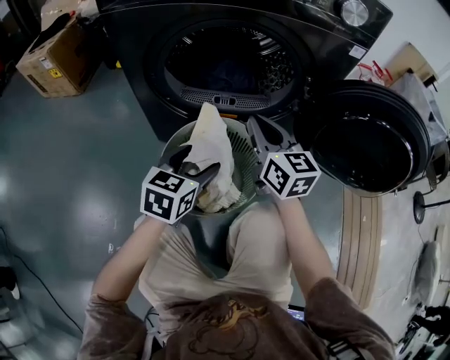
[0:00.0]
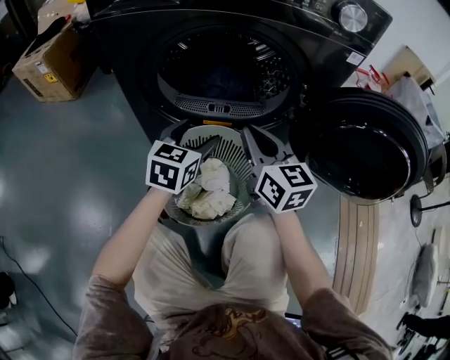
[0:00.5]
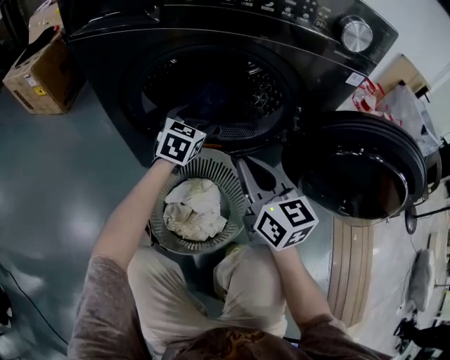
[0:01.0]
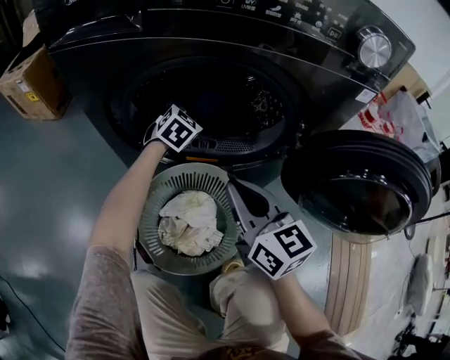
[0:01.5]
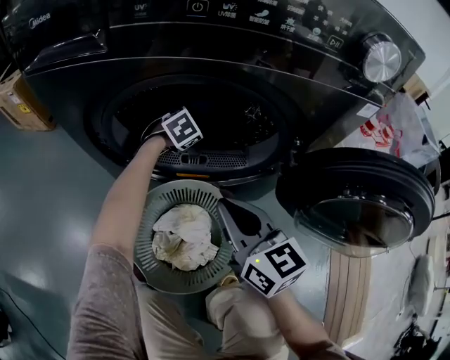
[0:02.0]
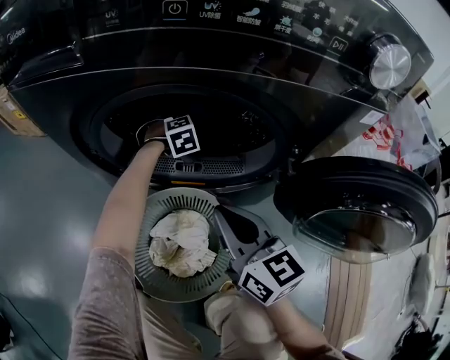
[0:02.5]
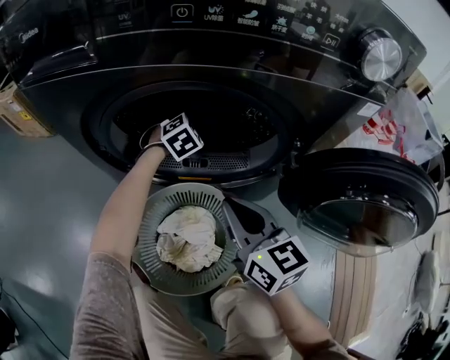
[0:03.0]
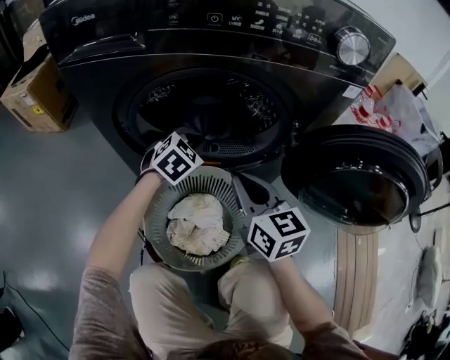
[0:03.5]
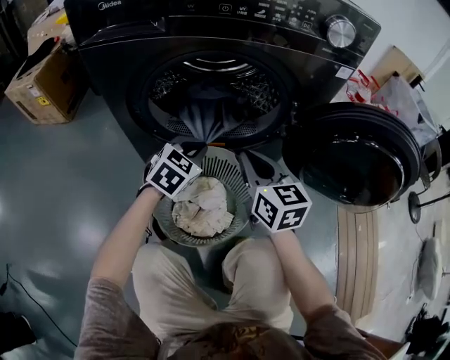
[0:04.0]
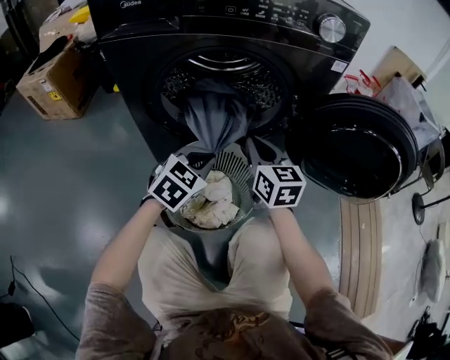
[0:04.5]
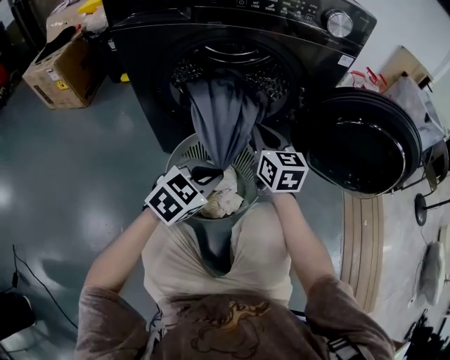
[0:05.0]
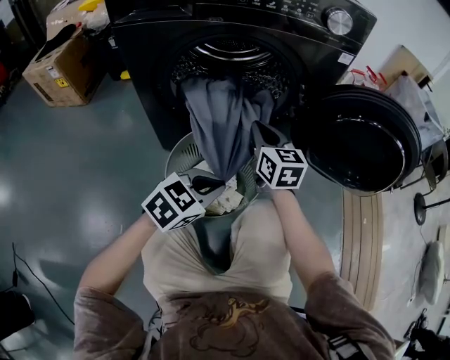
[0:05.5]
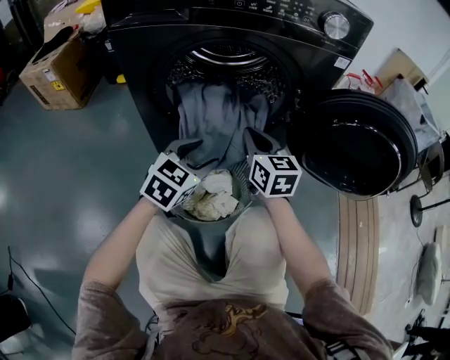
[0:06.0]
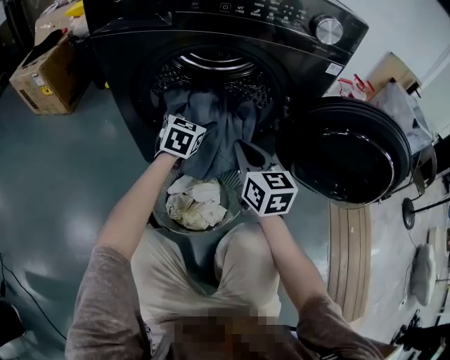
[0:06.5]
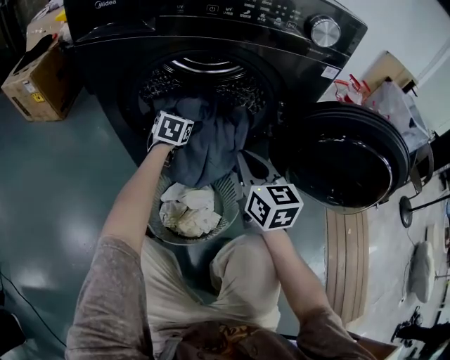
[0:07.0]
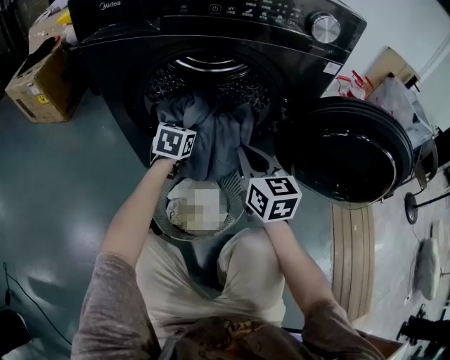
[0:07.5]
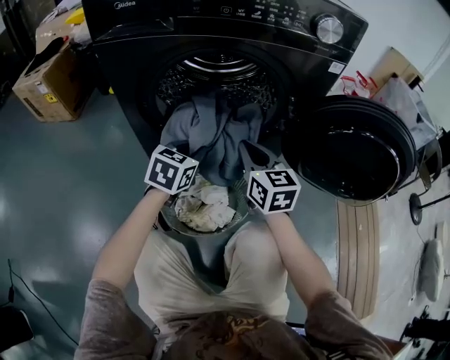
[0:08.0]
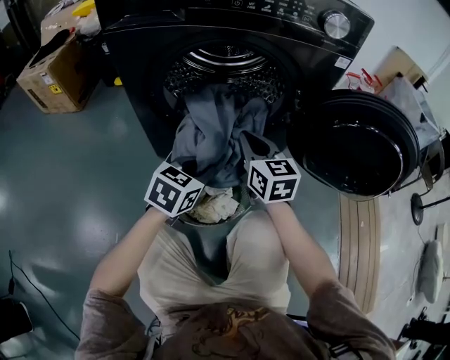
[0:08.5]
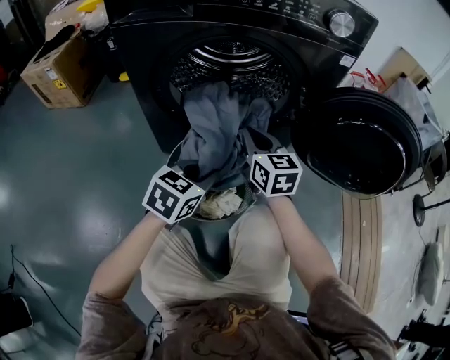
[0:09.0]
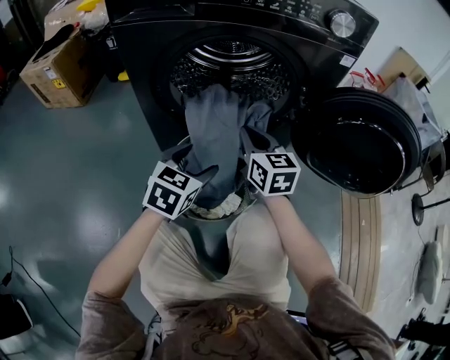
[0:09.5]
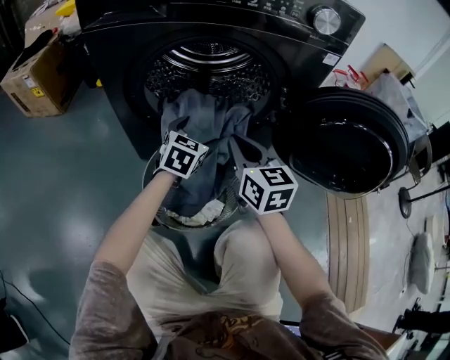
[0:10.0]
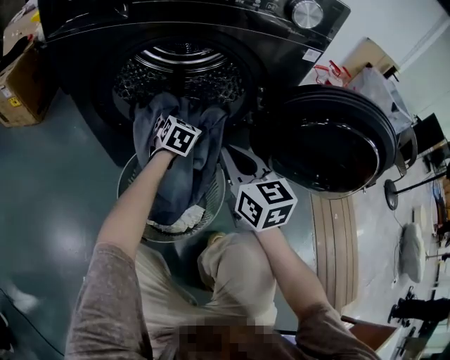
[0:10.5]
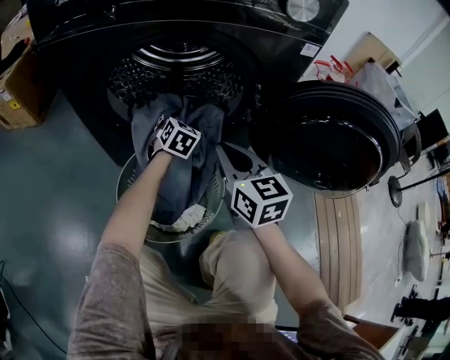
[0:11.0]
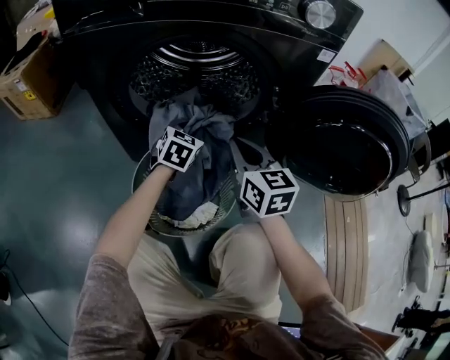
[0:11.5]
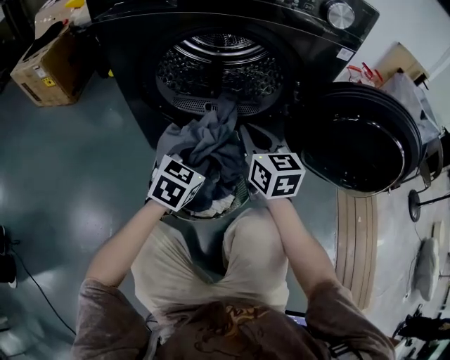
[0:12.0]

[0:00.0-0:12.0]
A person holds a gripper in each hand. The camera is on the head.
0:00.0 to 0:02.0: The left gripper is displaced forward by some 35 cm, and swivels some 40 degrees.
0:02.0 to 0:04.0: The left gripper goes approximately 25 cm backward and upward, swivels about 20 degrees, and closes.
0:04.0 to 0:06.0: The left gripper shifts about 10 cm backward, and opens its fingers.
0:06.0 to 0:08.0: The left gripper moves some 25 cm forward and comes back, and closes its fingers.
0:08.0 to 0:10.0: The left gripper travels backward and back again, some 10 cm each way, and opens its fingers.
0:10.0 to 0:12.0: The left gripper moves backward, some 10 cm, and closes up.

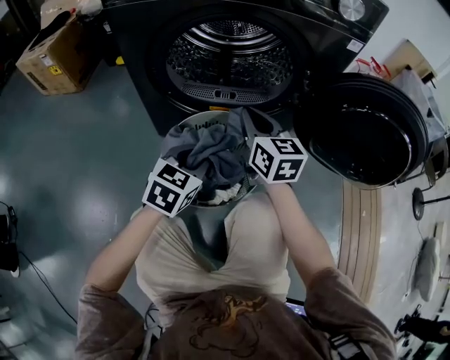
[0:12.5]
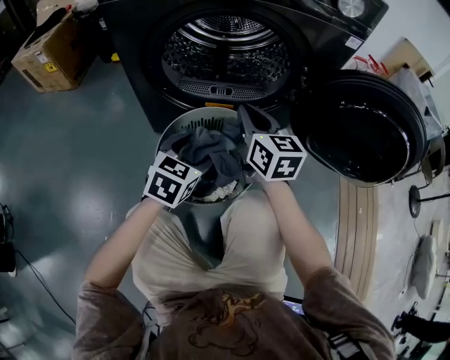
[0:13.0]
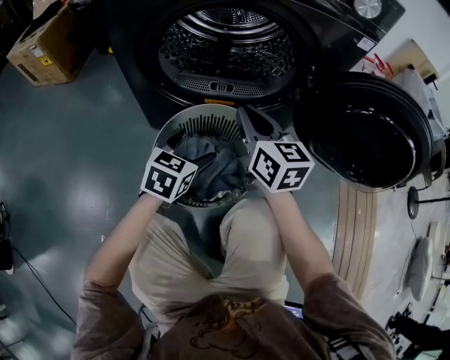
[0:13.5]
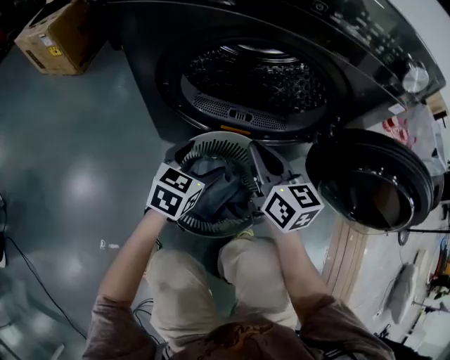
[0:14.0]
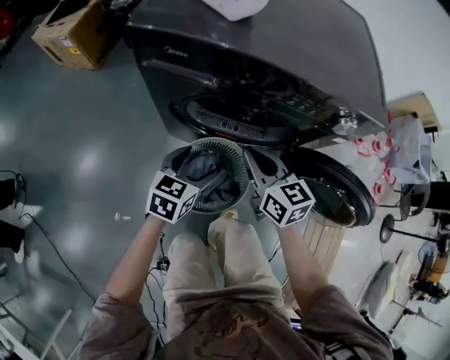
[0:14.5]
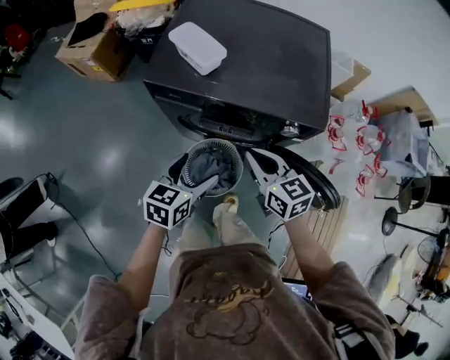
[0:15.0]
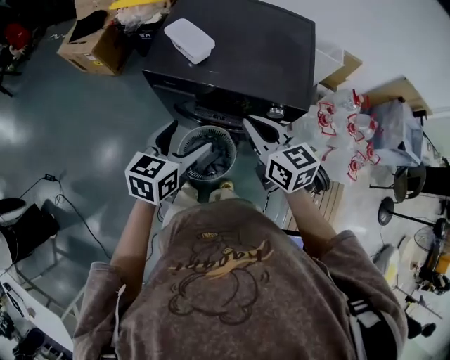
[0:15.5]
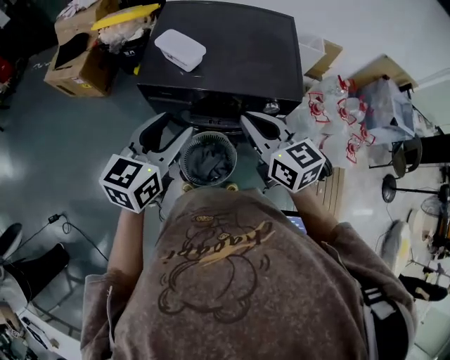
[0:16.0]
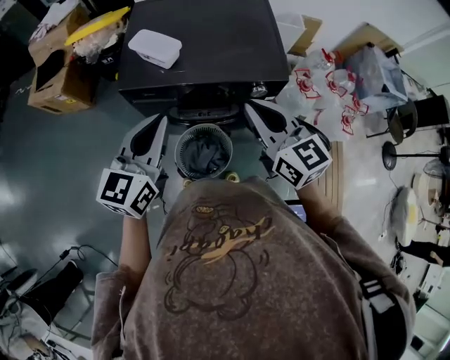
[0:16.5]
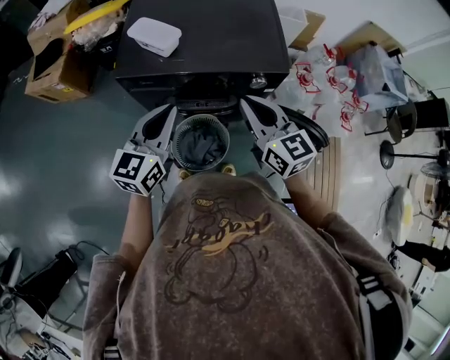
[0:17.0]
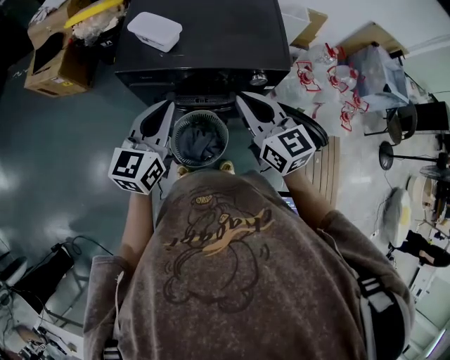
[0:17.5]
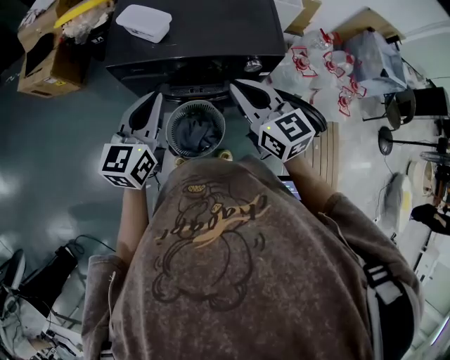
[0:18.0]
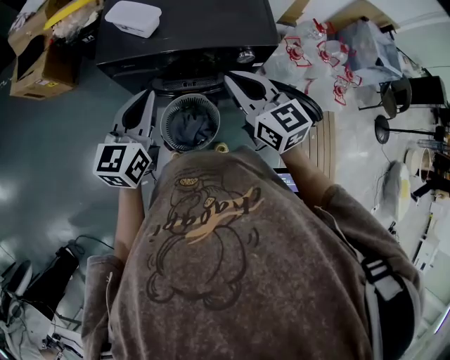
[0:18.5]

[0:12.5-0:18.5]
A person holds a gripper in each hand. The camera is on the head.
0:12.5 to 0:14.5: Both grippers travel together upward, some 20 cm. The left gripper rotates approximately 20 degrees, and opens its fingers; the right gripper rotates some 20 degrees.
0:14.5 to 0:16.5: The grippers both shift upward by about 40 cm. The left gripper swivels approximately 30 degrees, and closes its fingers.
0:16.5 to 0:18.5: Both grippers travel together downward, roughly 5 cm.

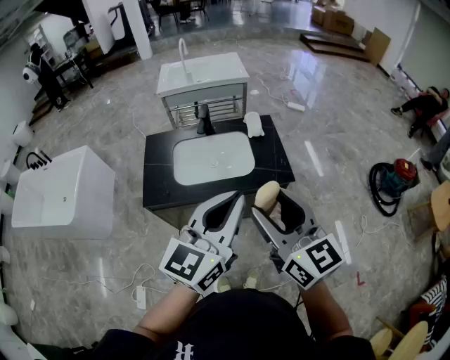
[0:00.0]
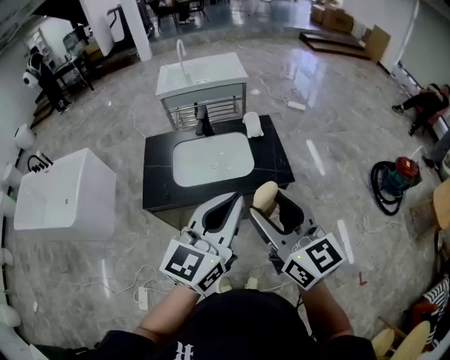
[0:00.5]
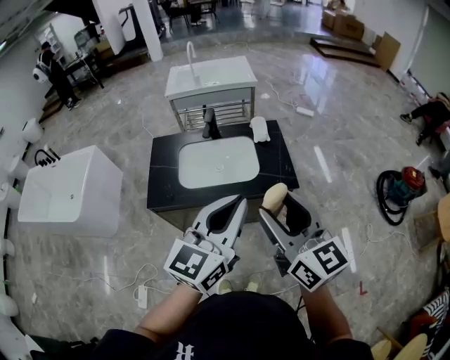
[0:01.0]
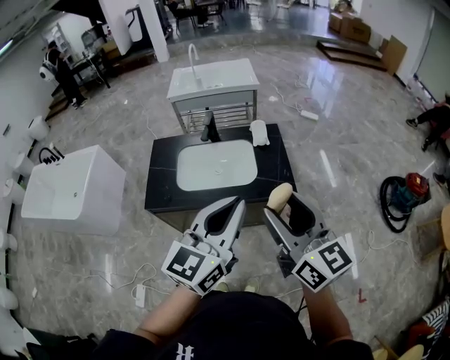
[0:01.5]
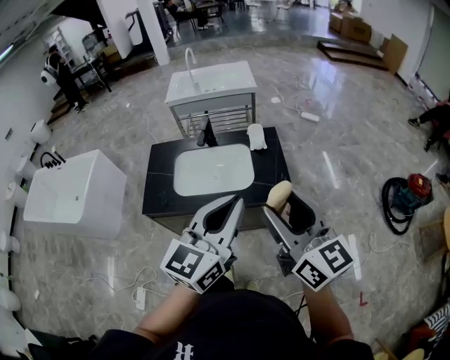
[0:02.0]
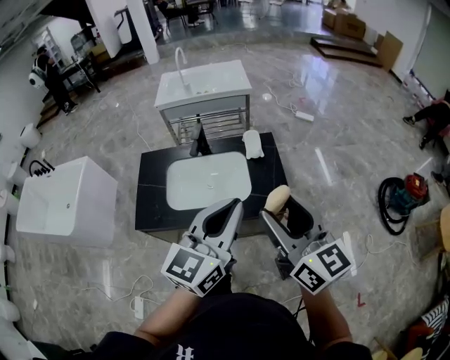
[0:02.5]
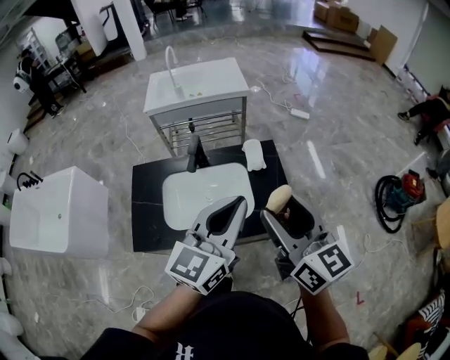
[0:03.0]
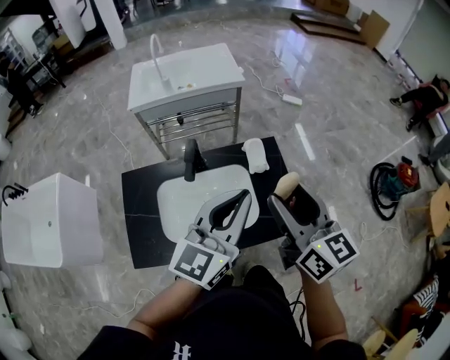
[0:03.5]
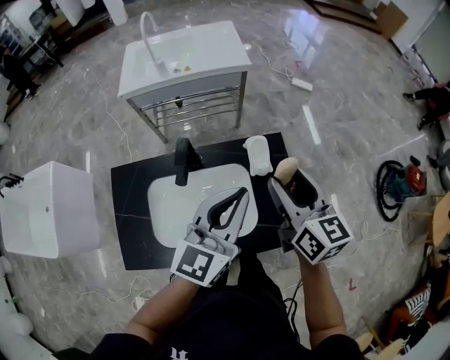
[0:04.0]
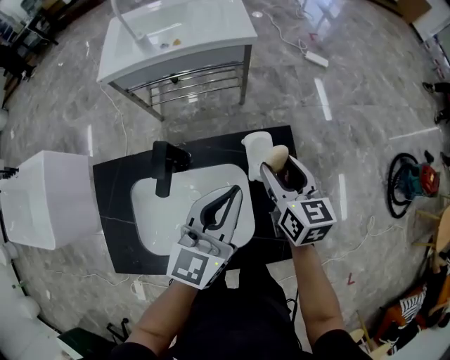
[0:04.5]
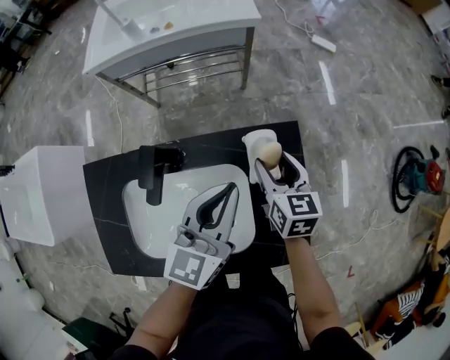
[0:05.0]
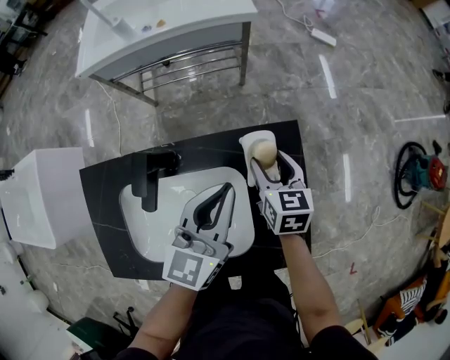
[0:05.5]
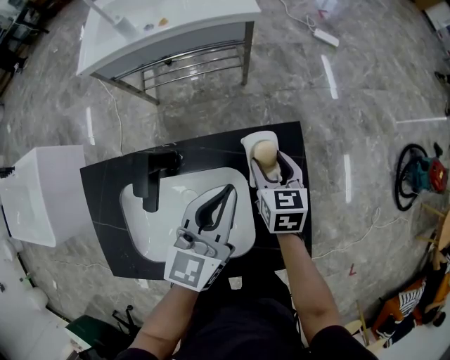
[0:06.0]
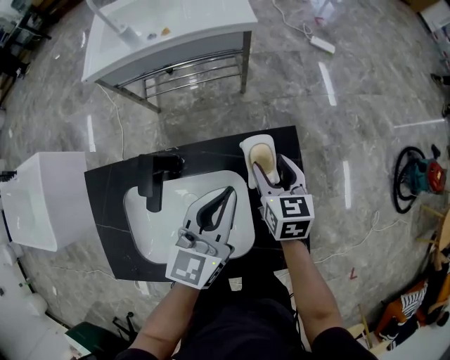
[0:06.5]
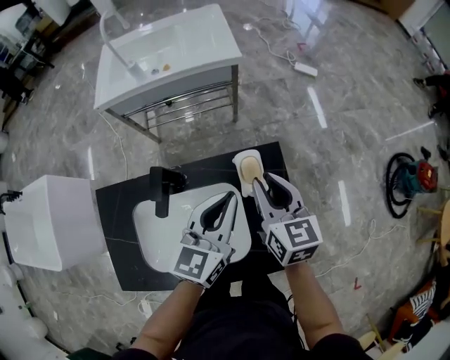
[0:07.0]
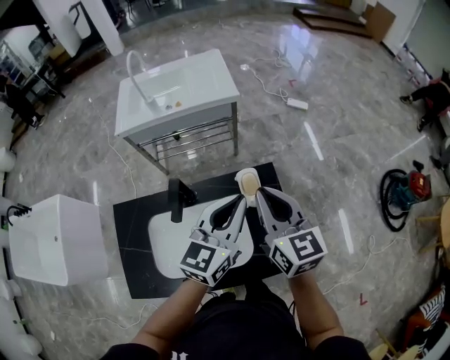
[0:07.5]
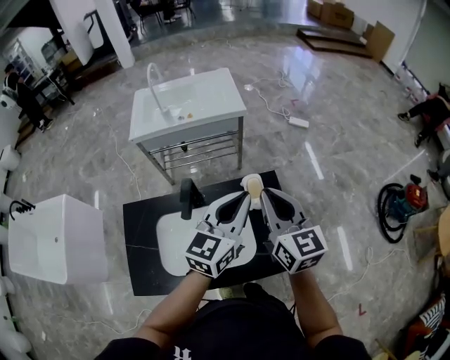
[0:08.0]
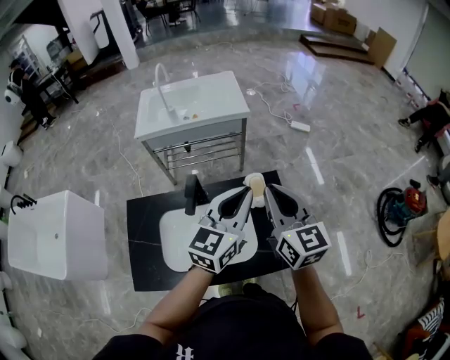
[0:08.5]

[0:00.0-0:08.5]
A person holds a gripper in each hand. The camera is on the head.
0:00.0 to 0:02.0: The left gripper travels to the right by about 10 cm; the right gripper is displaced to the right and forward by approximately 10 cm.
0:02.0 to 0:04.0: The two grippers travel together, forward, roughly 40 cm. The right gripper turns by some 20 degrees.
0:04.0 to 0:06.5: The grippers both shift downward and forward by approximately 25 cm. The right gripper swivels some 20 degrees.
0:06.5 to 0:08.5: The right gripper goes about 40 cm upward and backward, tilts its fingers roughly 30 degrees upward, and closes up. The left gripper travels upward and backward by approximately 25 cm.
